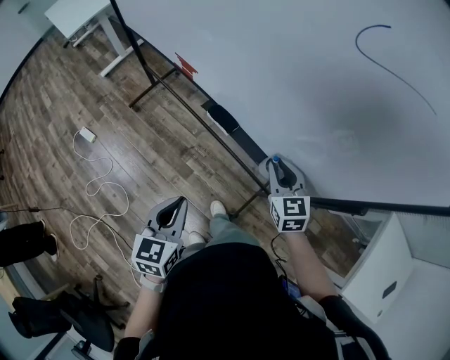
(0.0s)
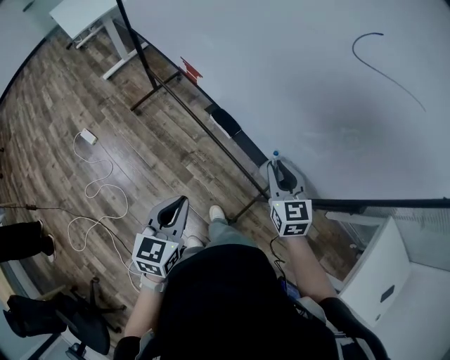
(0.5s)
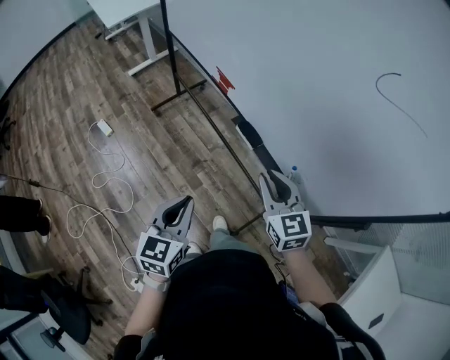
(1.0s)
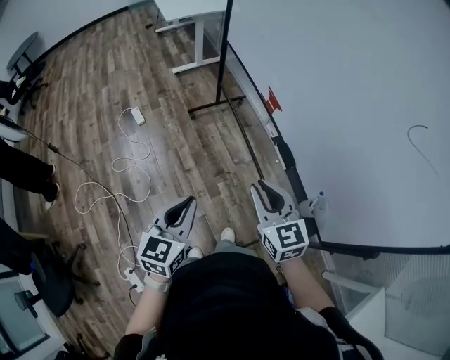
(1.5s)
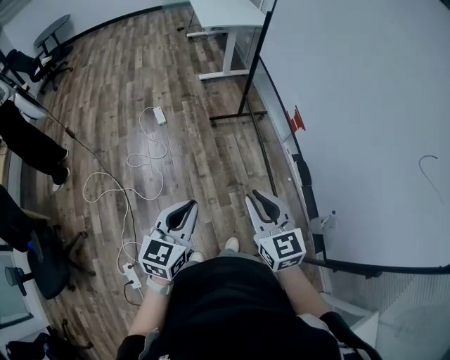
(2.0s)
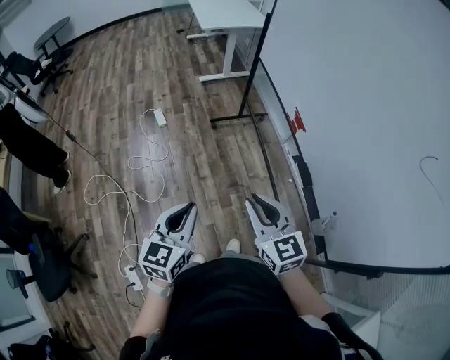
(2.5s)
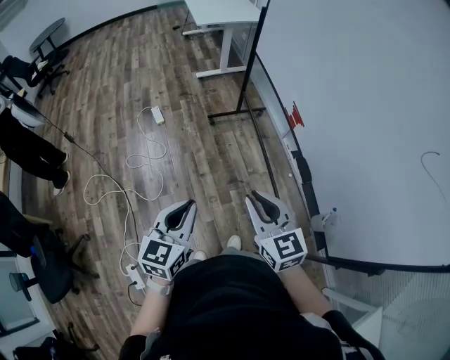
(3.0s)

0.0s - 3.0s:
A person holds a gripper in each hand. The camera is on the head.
0.0s - 1.5s: The right gripper ends up some 30 cm from where it was, and swivels approximately 40 degrees, while the left gripper ends up some 15 cm from where it was, and changes its angle by roughly 20 degrees.
1.5s - 3.0s: The two grippers go about 5 cm to the left.

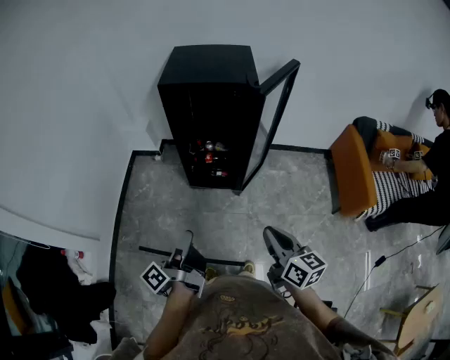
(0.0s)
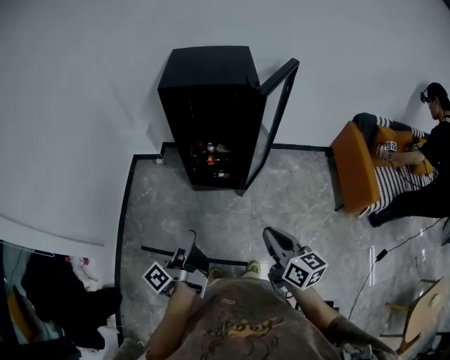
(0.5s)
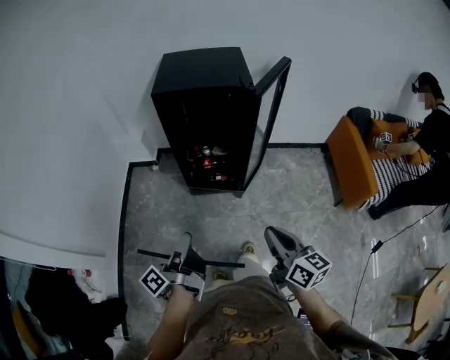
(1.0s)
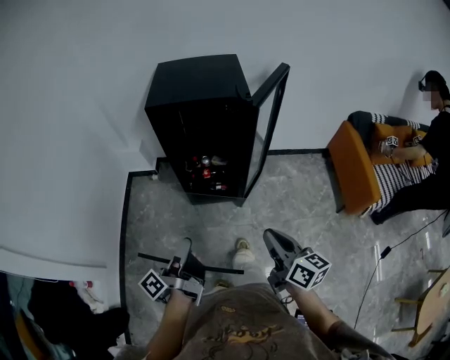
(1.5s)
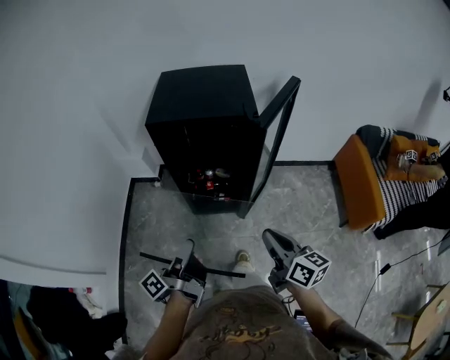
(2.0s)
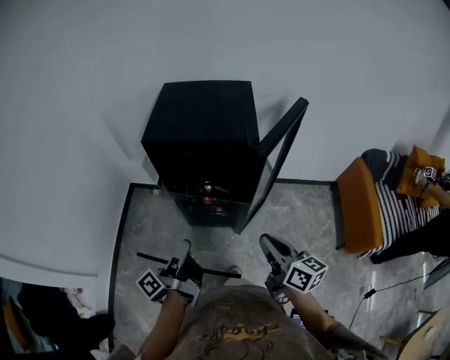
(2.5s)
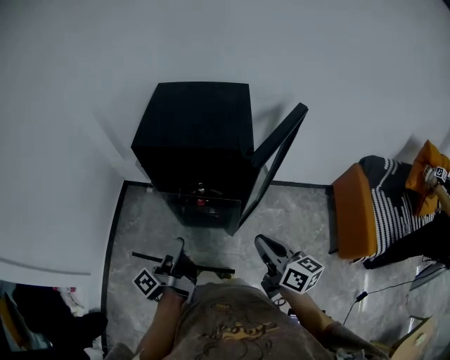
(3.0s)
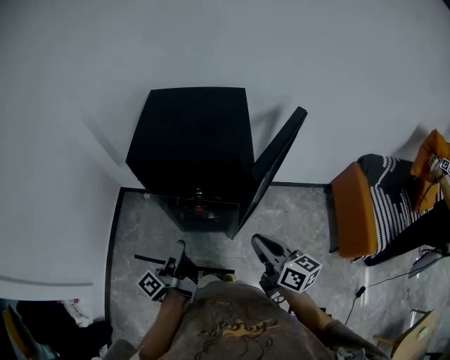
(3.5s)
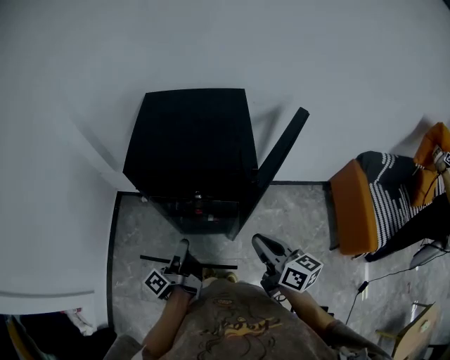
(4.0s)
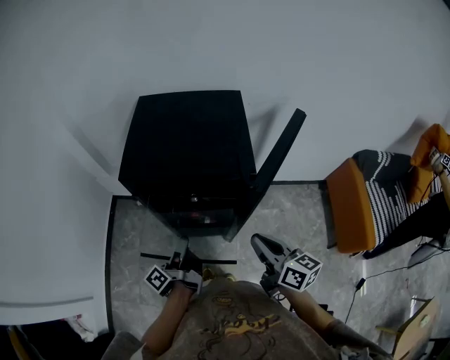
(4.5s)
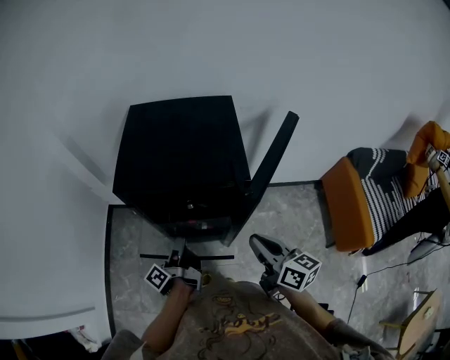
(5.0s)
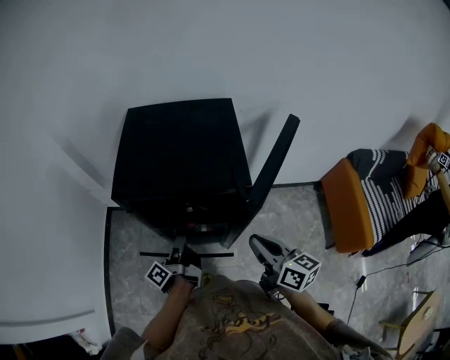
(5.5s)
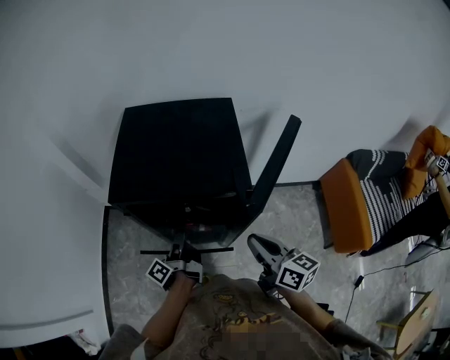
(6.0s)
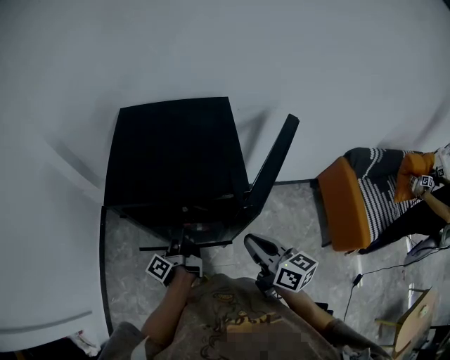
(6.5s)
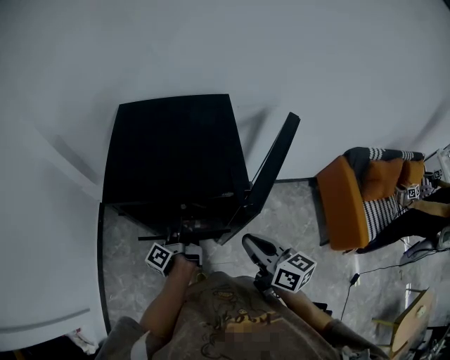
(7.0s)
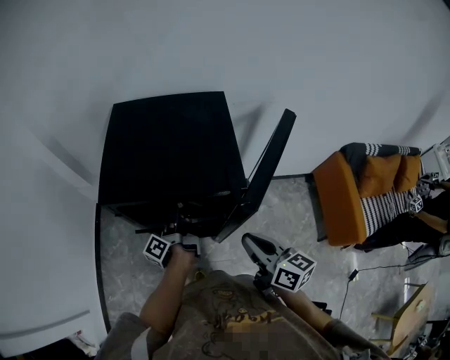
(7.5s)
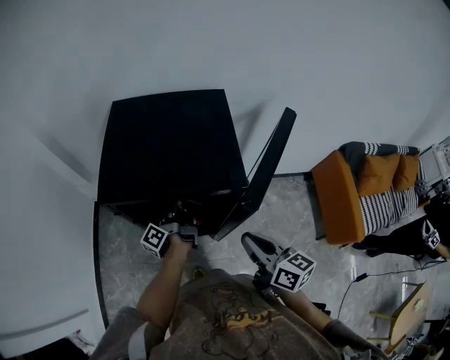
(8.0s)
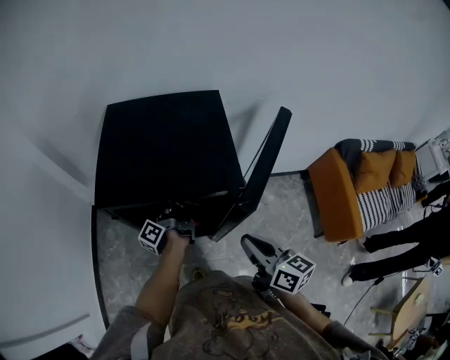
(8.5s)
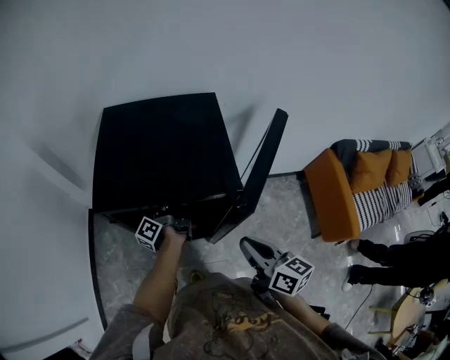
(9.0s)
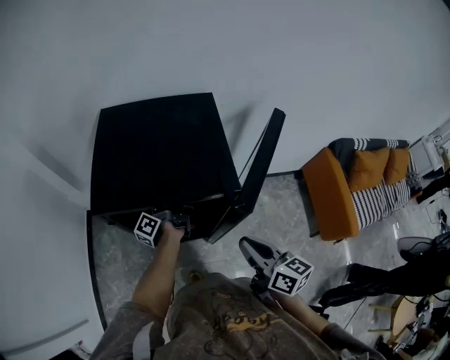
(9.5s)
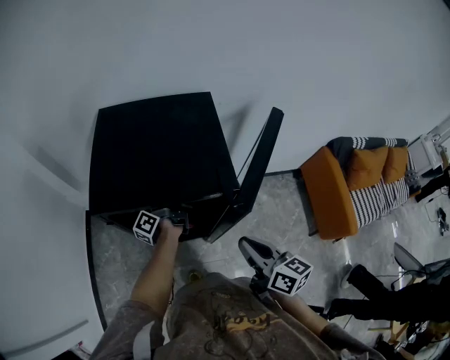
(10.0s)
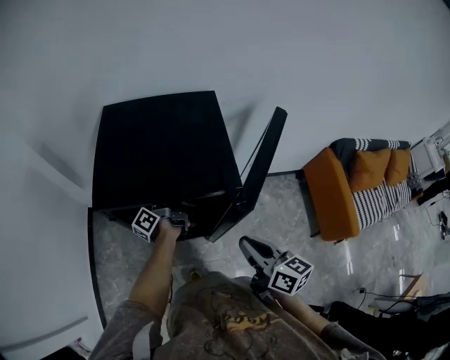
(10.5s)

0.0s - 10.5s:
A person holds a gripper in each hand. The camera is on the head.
0.0s - 2.0s: The right gripper shifts by approximately 15 cm.
2.0s - 4.0s: The right gripper ends up about 20 cm from where it was.
4.0s - 6.5s: The right gripper shifts by approximately 5 cm.

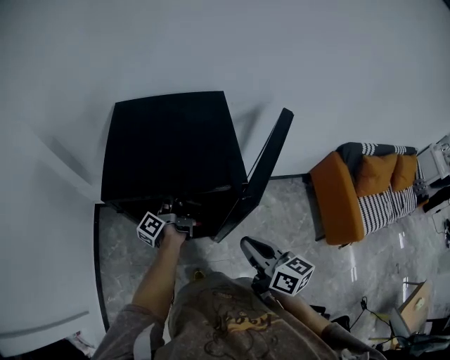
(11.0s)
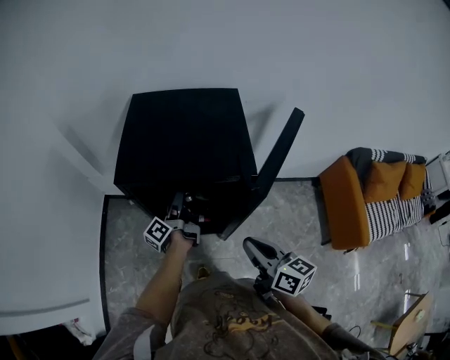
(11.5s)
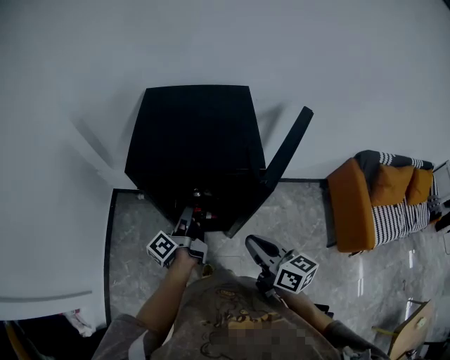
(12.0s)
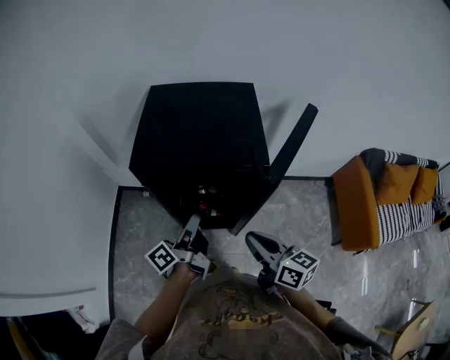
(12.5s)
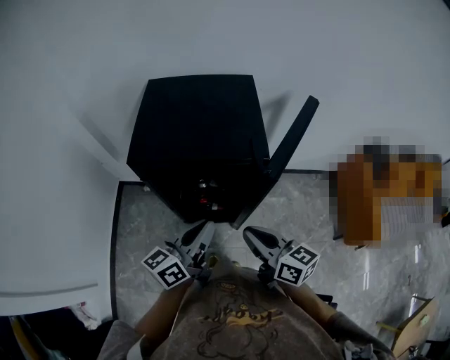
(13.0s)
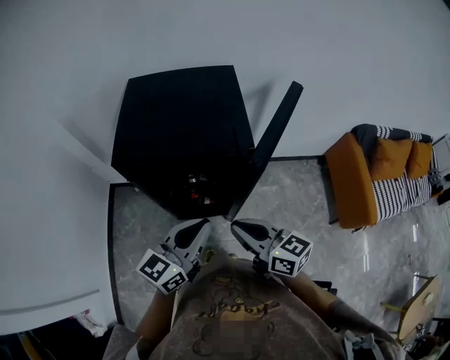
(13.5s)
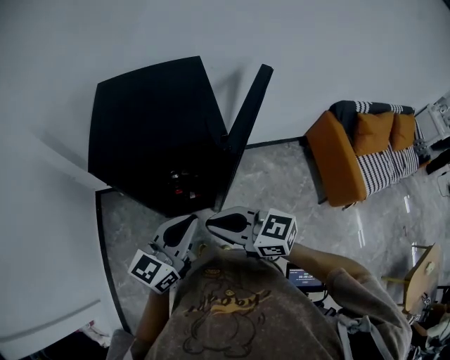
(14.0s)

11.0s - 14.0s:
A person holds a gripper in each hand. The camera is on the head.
11.0s - 12.5s: The right gripper shifts by approximately 5 cm.
12.5s - 14.0s: The right gripper moves approximately 5 cm, and rotates roughly 30 degrees.

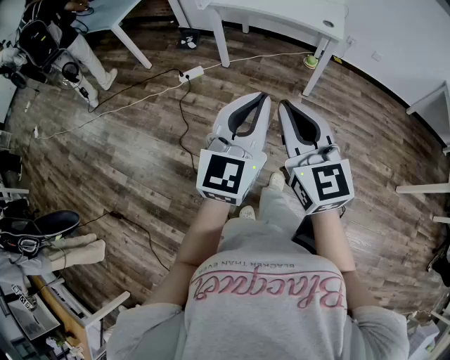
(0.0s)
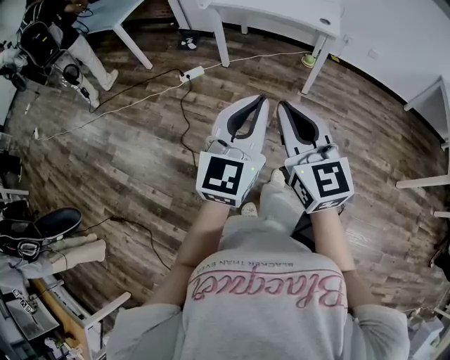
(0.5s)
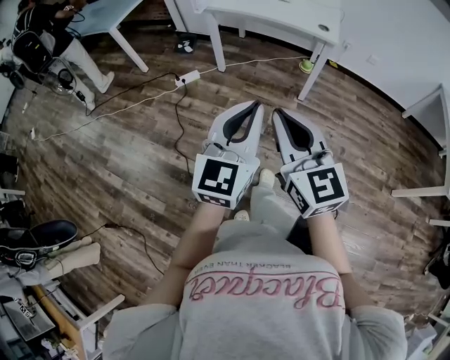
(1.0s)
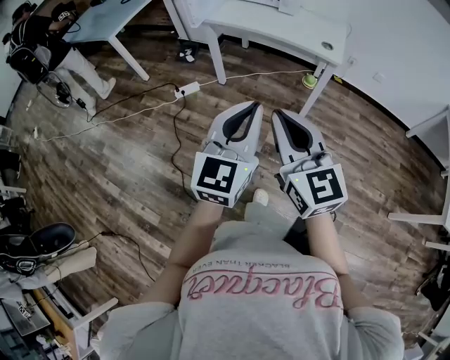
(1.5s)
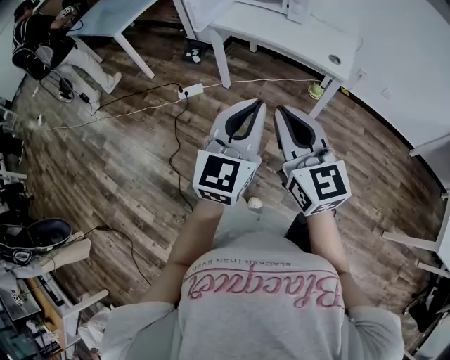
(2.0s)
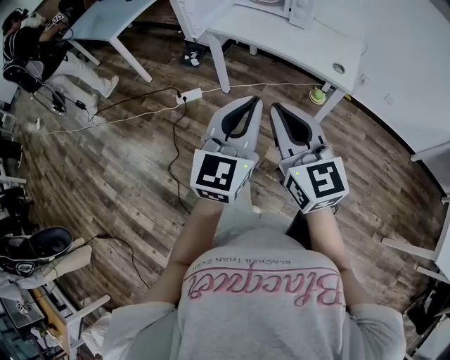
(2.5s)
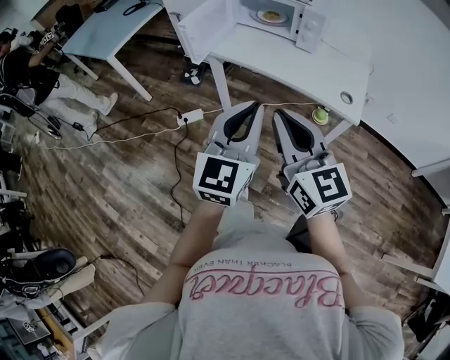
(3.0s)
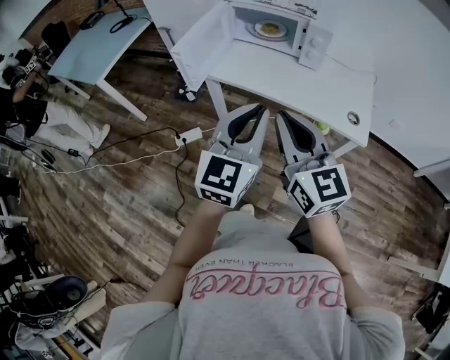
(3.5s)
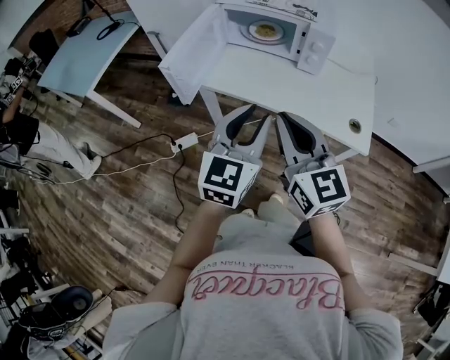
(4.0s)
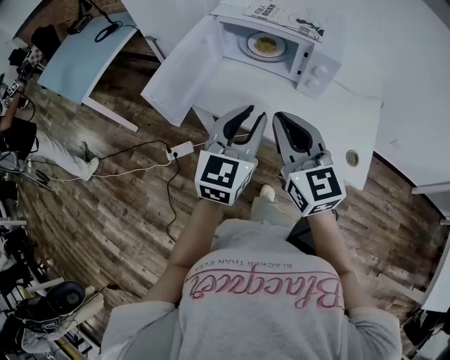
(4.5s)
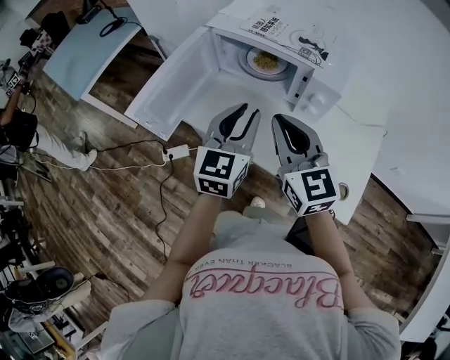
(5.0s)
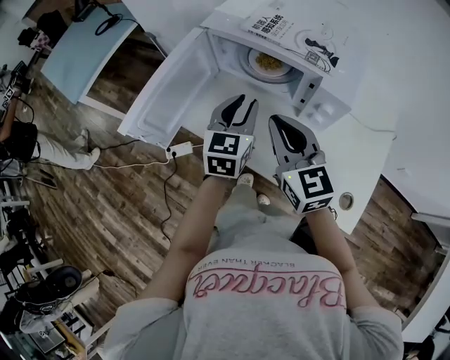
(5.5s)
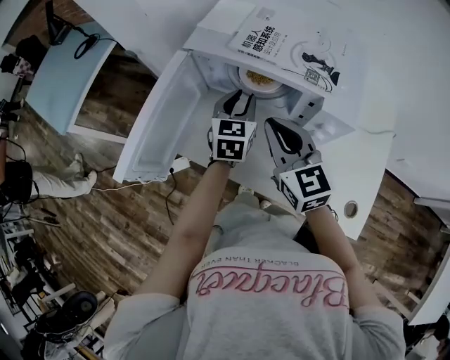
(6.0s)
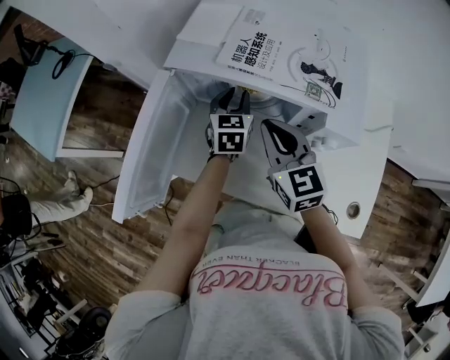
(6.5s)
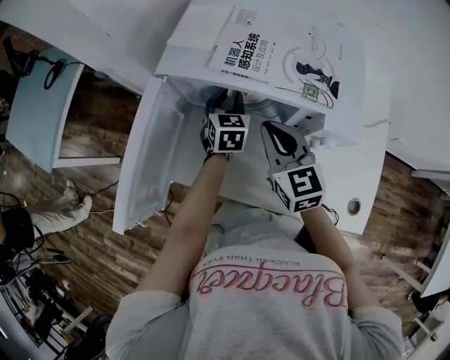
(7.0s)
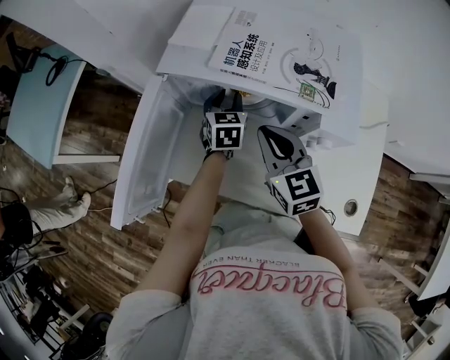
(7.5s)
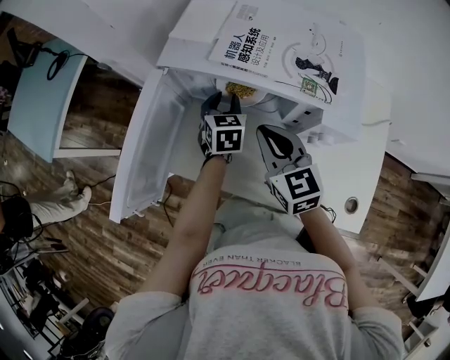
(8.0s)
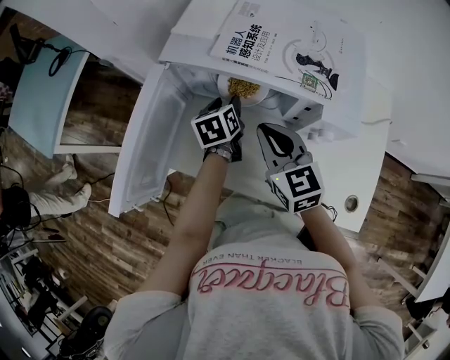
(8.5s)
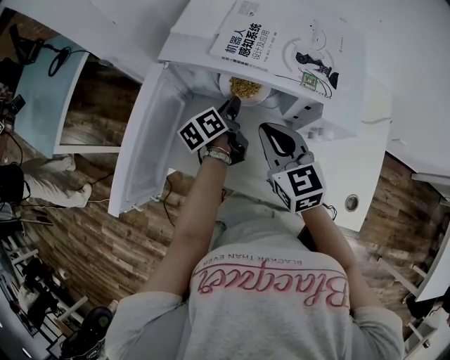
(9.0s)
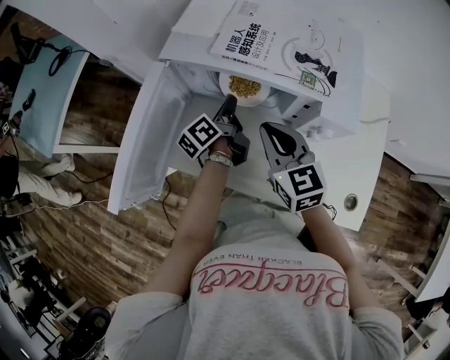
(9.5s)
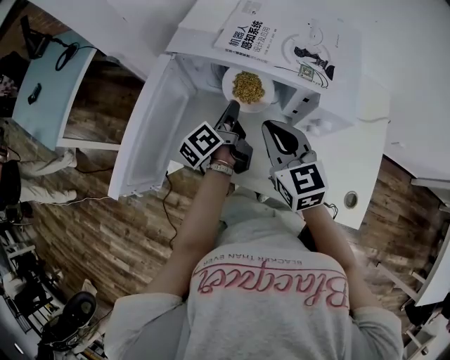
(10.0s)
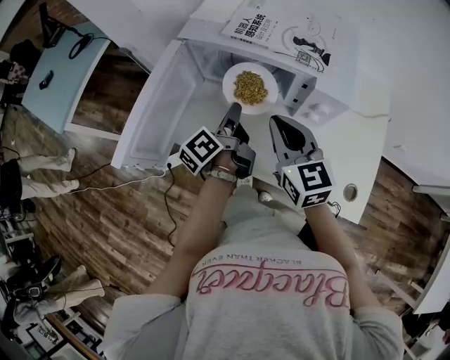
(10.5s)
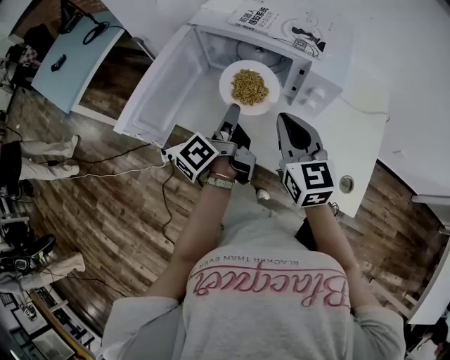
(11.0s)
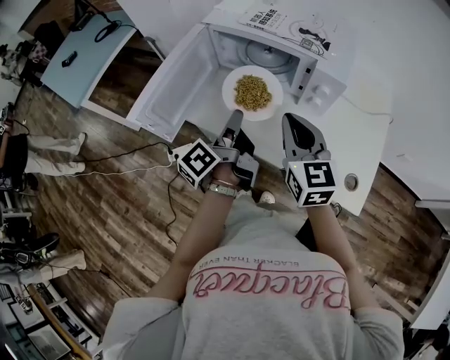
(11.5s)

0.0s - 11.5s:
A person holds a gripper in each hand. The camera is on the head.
0.0s - 2.0s: Both grippers travel together forward and to the right, approximately 20 cm.
2.0s - 4.0s: Both grippers travel together forward, some 40 cm. The left gripper opens.
4.0s - 6.0s: The two grippers go roughly 40 cm forward. The left gripper changes its angle by about 20 degrees.
6.0s - 7.5s: The right gripper ends up some 5 cm from where it was. Meanwhile the left gripper shifts about 10 cm forward and downward.
7.5s - 9.5s: The left gripper twists some 70 degrees counterclockwise, seen from behind, and closes its fingers.
9.5s - 11.5s: The left gripper goes approximately 25 cm backward and upward. Meanwhile the right gripper goes some 15 cm backward and upward.
